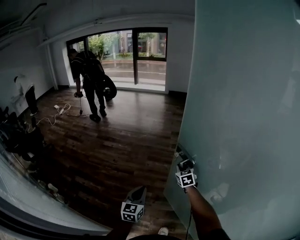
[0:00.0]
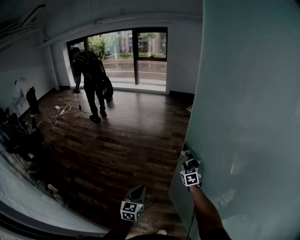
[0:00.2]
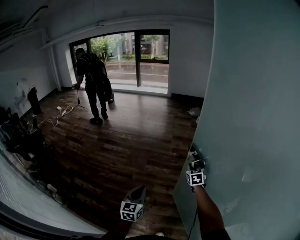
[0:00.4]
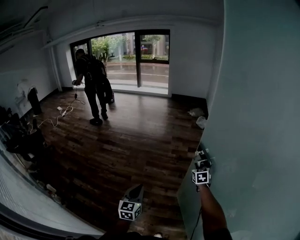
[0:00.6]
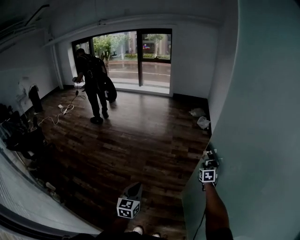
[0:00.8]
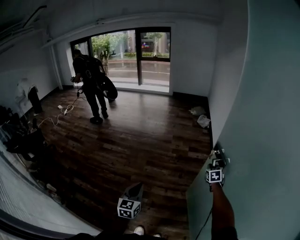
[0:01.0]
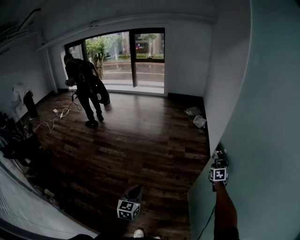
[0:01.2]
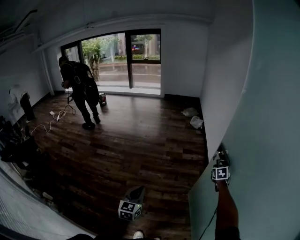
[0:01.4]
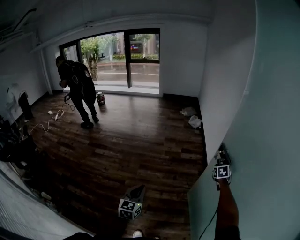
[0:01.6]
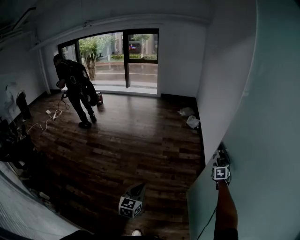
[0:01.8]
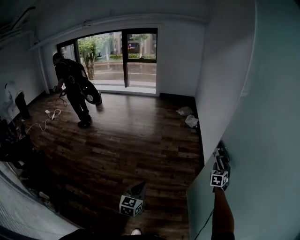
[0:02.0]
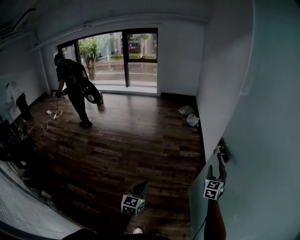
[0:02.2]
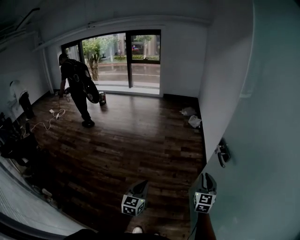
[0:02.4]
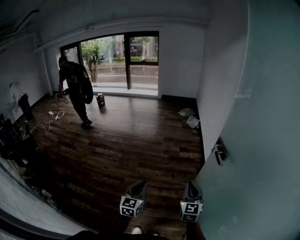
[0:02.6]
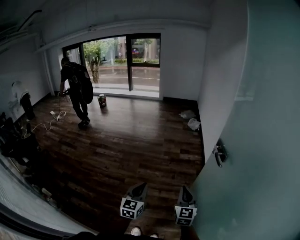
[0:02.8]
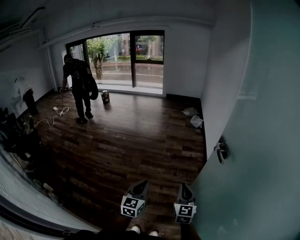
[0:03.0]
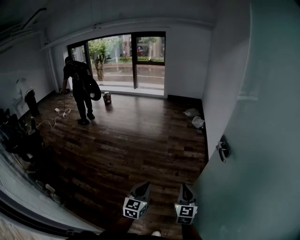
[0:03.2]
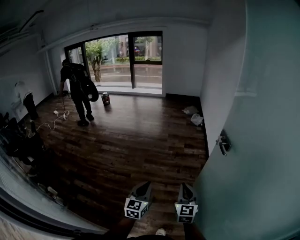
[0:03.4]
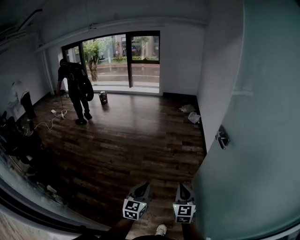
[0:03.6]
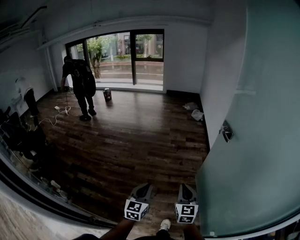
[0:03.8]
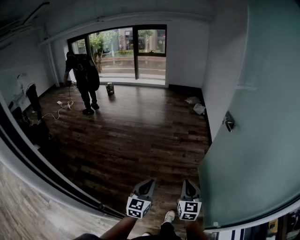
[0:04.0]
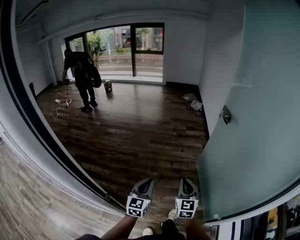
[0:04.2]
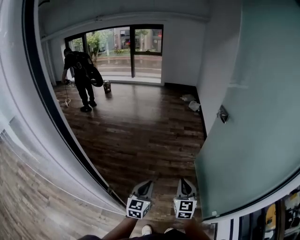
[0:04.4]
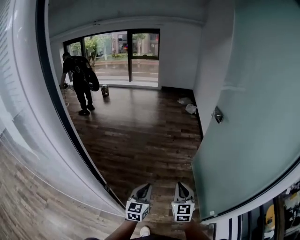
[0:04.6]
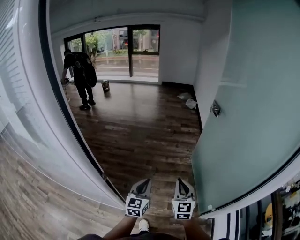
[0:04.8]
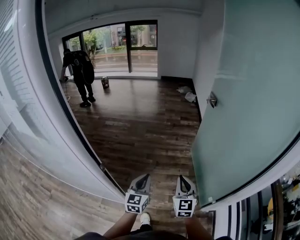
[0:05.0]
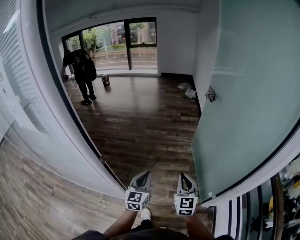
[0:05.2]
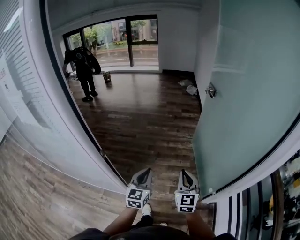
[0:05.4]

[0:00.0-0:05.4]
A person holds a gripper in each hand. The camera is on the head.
0:00.0 to 0:01.4: The right gripper is displaced to the right and forward by approximately 40 cm, and rotates about 20 degrees. Meanwhile the left gripper travels forward and to the right by approximately 20 cm.
0:01.4 to 0:02.8: The right gripper heads backward and to the left, covering about 35 cm, points its fingers some 30 degrees further upward, and opens and closes again. The left gripper is displaced backward and to the right by roughly 10 cm.
0:02.8 to 0:04.0: The left gripper goes roughly 30 cm backward; the right gripper is displaced backward and to the left by approximately 30 cm.
0:04.0 to 0:05.4: The grippers both shift backward by about 30 cm.

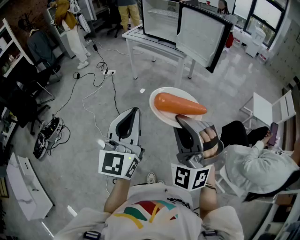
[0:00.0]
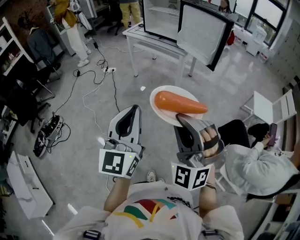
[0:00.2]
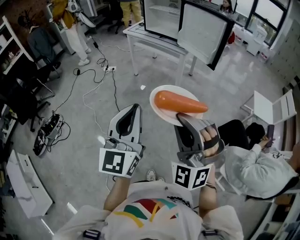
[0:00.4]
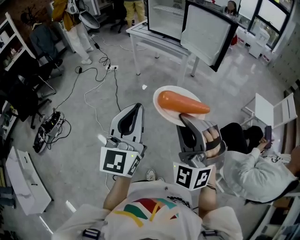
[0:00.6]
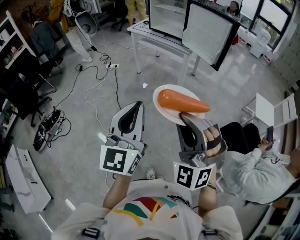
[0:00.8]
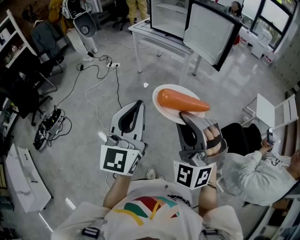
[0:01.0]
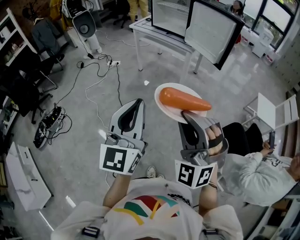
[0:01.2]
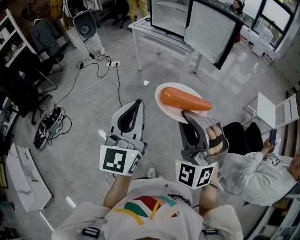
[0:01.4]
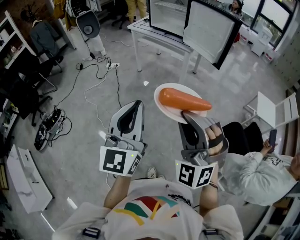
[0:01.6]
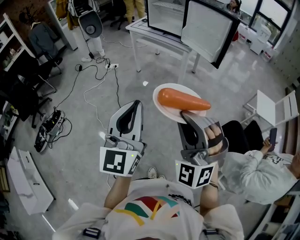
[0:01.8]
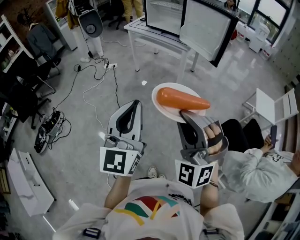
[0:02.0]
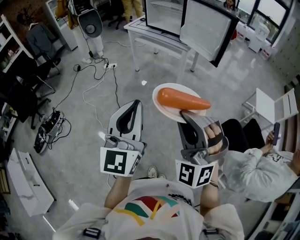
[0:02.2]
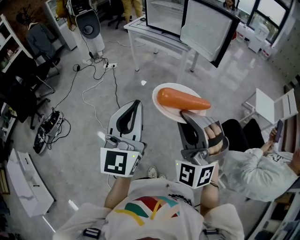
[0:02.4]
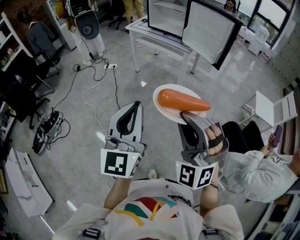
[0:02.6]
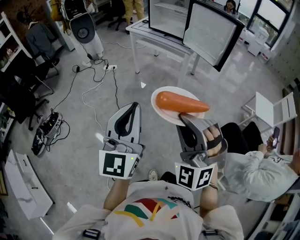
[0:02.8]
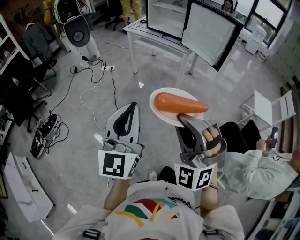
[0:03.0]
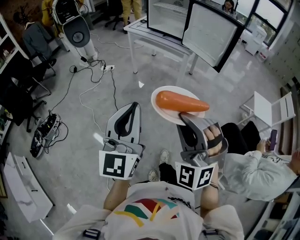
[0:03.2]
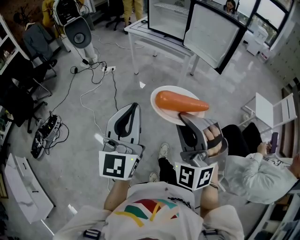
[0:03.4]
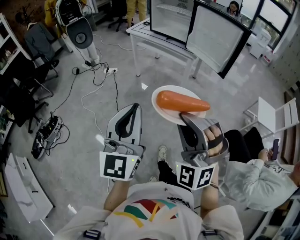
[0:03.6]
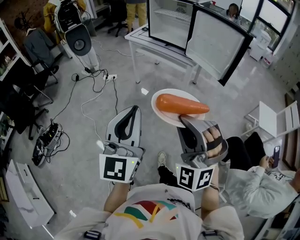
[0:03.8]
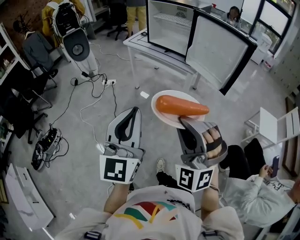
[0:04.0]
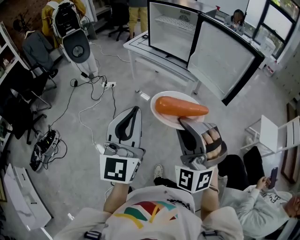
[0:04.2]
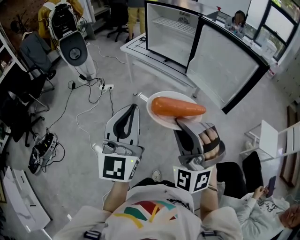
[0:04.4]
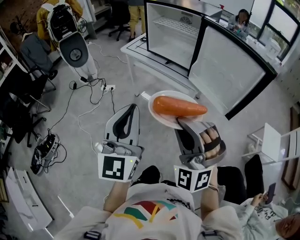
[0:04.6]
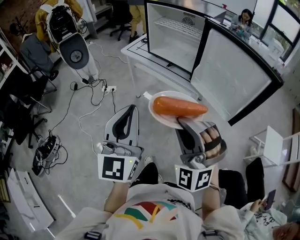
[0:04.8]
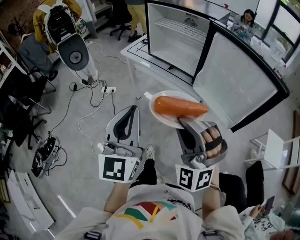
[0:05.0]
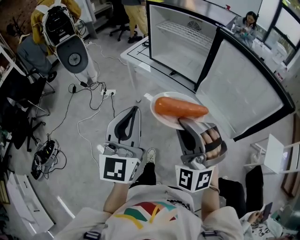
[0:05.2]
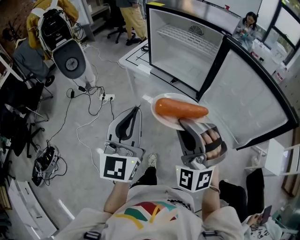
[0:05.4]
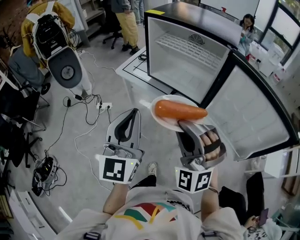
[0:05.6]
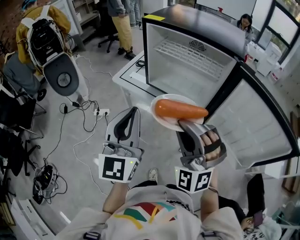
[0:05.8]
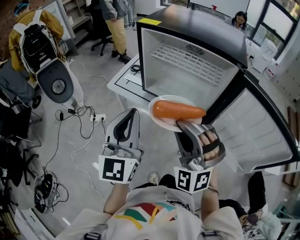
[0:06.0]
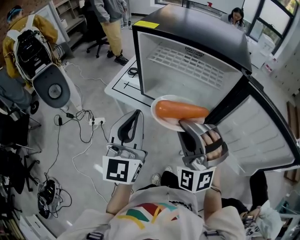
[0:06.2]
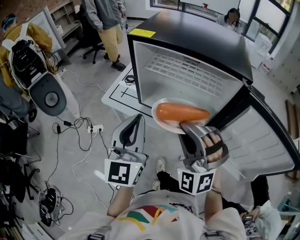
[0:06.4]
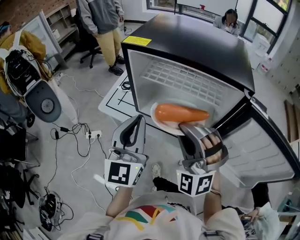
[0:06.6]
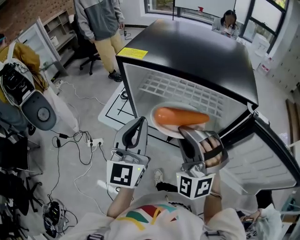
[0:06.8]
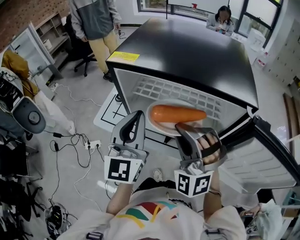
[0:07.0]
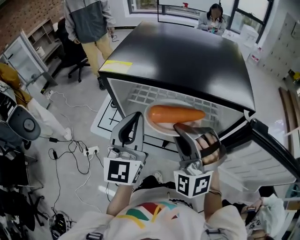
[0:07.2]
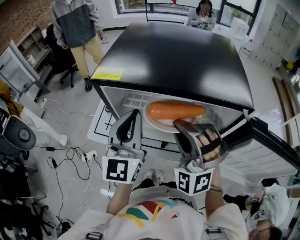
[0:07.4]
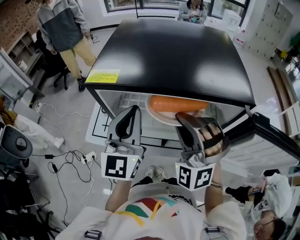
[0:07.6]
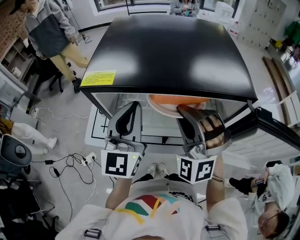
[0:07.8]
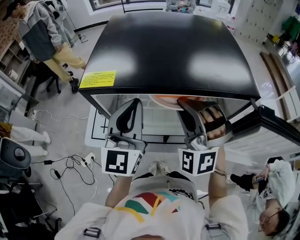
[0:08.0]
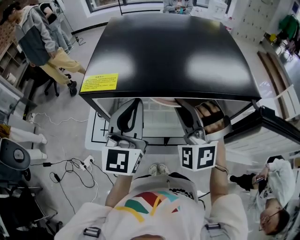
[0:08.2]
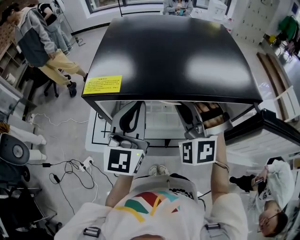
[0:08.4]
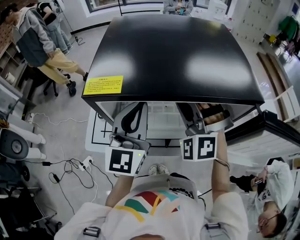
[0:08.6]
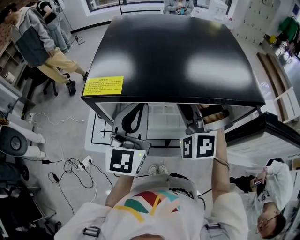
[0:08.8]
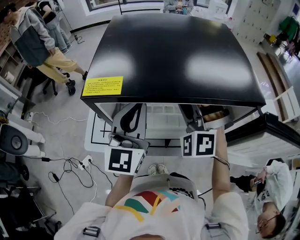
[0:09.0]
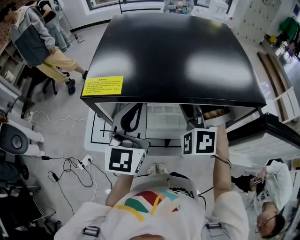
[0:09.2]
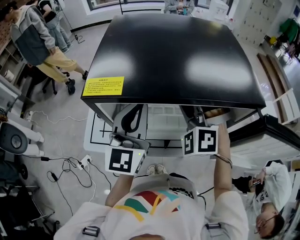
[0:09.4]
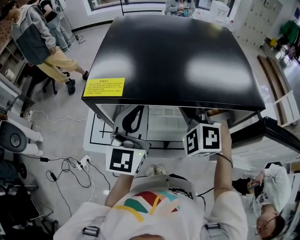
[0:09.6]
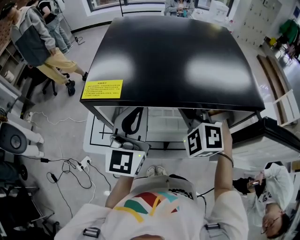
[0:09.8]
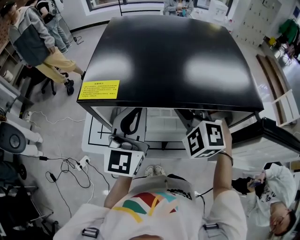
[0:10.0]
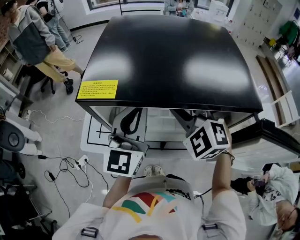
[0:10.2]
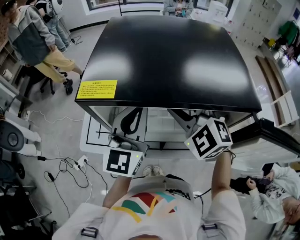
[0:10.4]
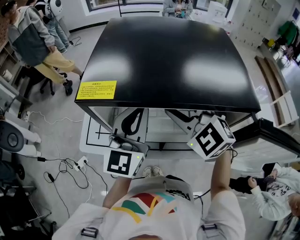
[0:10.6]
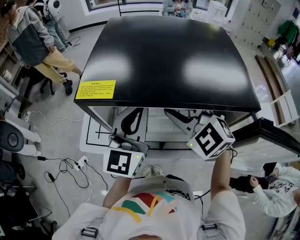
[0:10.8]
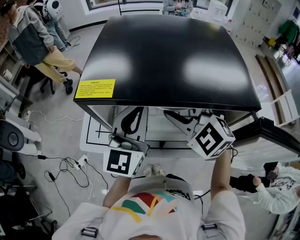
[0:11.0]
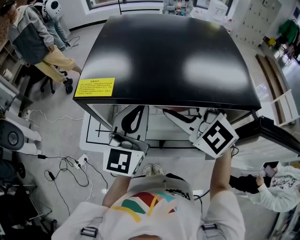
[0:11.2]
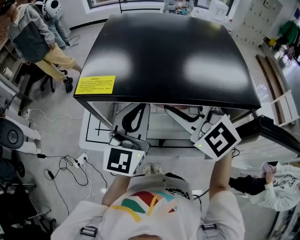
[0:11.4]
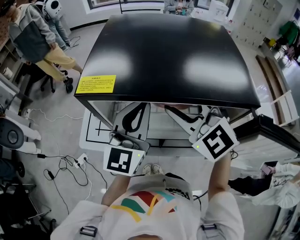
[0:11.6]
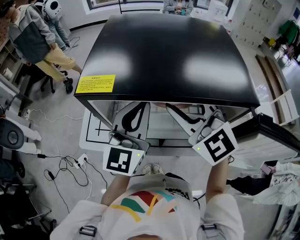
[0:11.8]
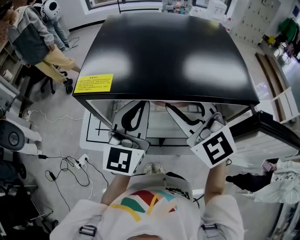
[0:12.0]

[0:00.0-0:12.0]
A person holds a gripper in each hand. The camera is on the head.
0:00.0 to 0:01.6: The two grippers keep their place.
0:01.6 to 0:03.0: The grippers make only small movements.
0:03.0 to 0:04.4: The two grippers go some 30 cm forward.
0:04.4 to 0:06.0: Both grippers are carried forward, approximately 50 cm.
0:06.0 to 0:07.6: The grippers both shift forward by roughly 25 cm. The left gripper rotates about 20 degrees, while the right gripper changes its angle by approximately 20 degrees.
0:07.6 to 0:09.0: The left gripper ends up roughly 5 cm from where it was; the right gripper travels forward by about 10 cm.
0:09.0 to 0:10.4: The right gripper rotates about 30 degrees.
0:10.4 to 0:12.0: The right gripper moves roughly 5 cm, and turns by roughly 20 degrees.

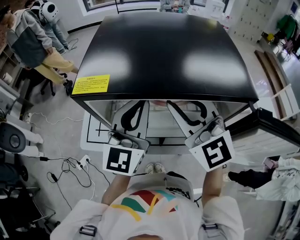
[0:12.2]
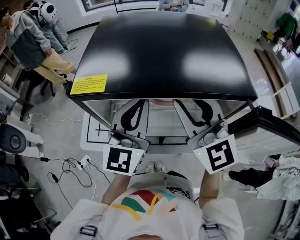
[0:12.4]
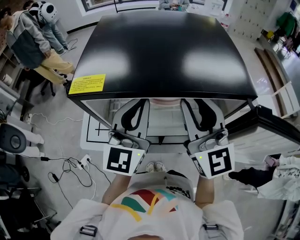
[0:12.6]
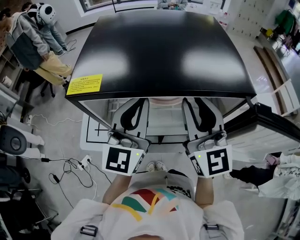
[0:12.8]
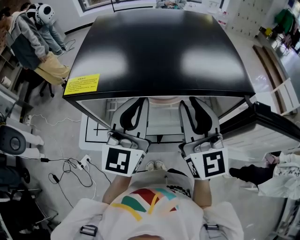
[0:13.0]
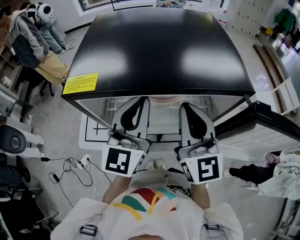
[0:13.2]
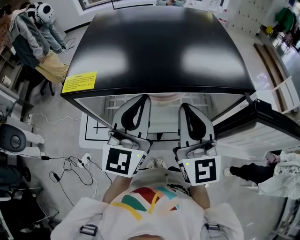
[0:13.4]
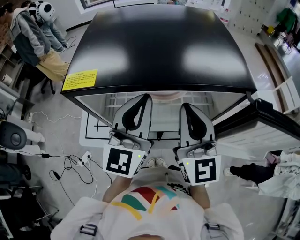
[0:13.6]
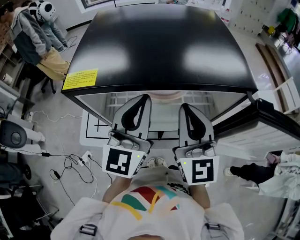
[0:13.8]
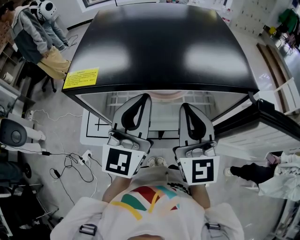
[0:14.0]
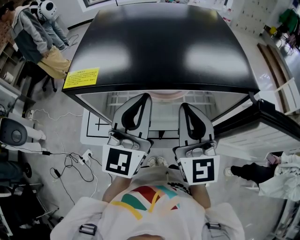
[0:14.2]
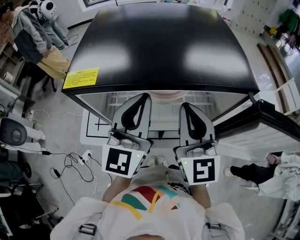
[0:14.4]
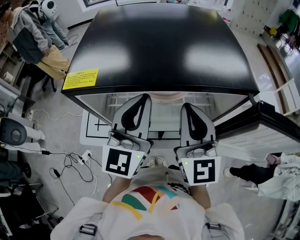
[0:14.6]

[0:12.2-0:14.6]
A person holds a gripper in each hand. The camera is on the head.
0:12.2 to 0:13.4: The right gripper travels to the right by some 5 cm, rotates some 30 degrees, and closes its fingers.
0:13.4 to 0:14.6: The two grippers keep their place.

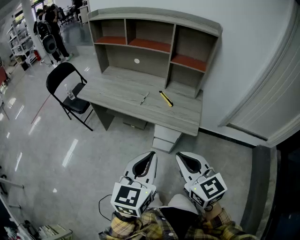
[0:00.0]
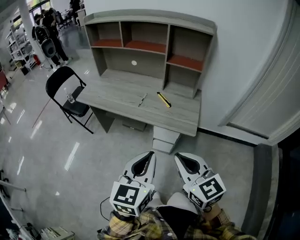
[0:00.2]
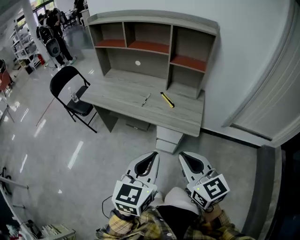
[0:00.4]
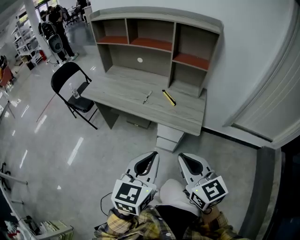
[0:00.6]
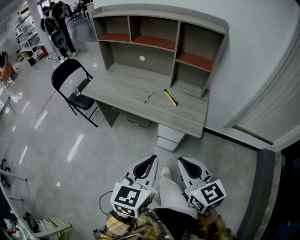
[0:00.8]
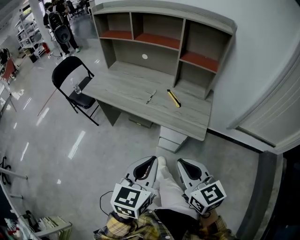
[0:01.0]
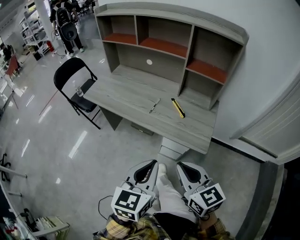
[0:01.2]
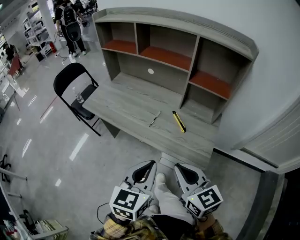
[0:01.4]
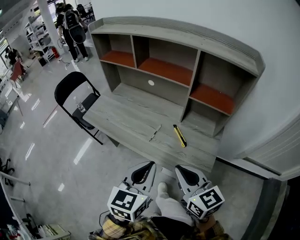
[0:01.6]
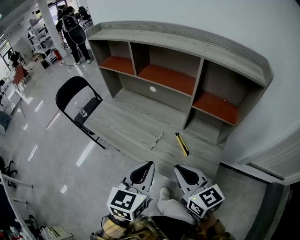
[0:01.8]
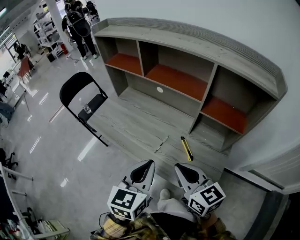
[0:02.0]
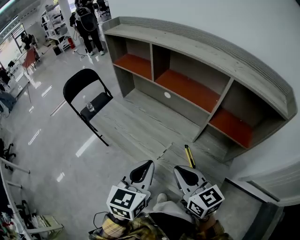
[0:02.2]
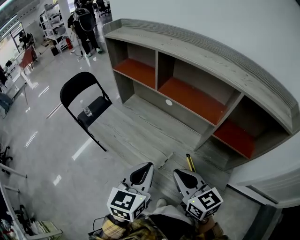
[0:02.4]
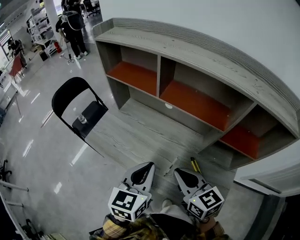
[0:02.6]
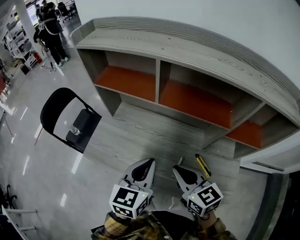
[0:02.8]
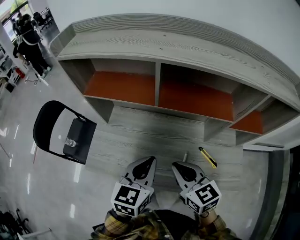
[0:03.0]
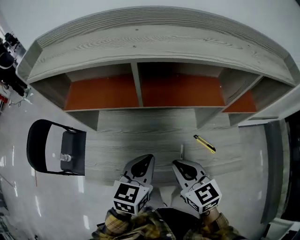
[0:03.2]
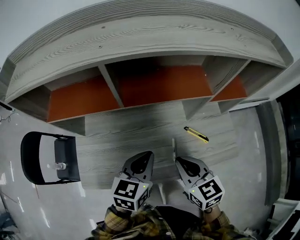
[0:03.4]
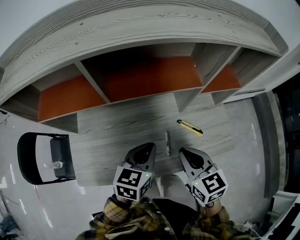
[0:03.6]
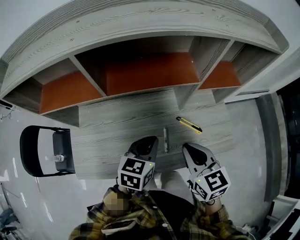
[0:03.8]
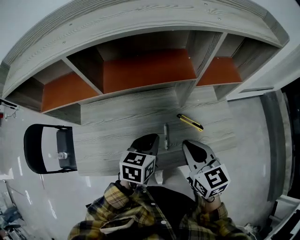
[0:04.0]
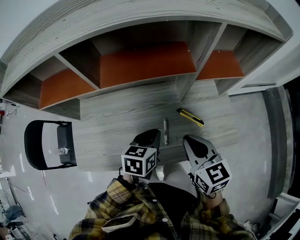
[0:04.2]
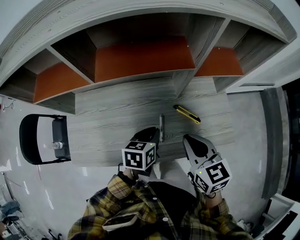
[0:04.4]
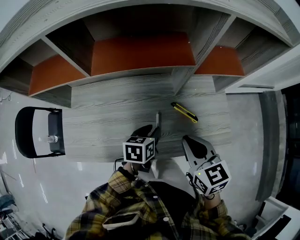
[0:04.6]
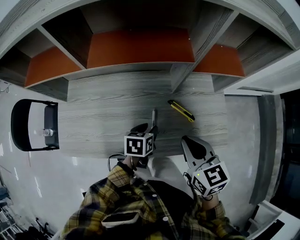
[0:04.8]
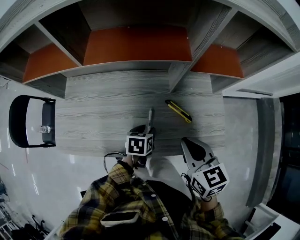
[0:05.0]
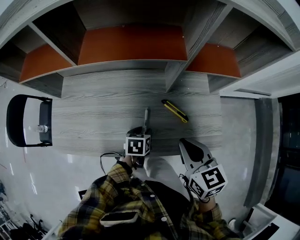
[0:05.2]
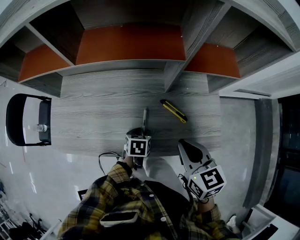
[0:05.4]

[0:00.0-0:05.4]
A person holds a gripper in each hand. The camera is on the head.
0:00.0 to 0:01.4: The grippers both shift forward by about 20 cm.
0:01.4 to 0:02.8: Both grippers travel together forward, about 35 cm.
0:02.8 to 0:04.0: The right gripper shifts by approximately 10 cm, and swivels some 30 degrees; the left gripper is displaced downward by about 10 cm, and changes its angle by about 40 degrees.
0:04.0 to 0:05.4: The left gripper travels downward by some 20 cm, turns by some 30 degrees, and opens up; the right gripper goes some 10 cm to the right.
